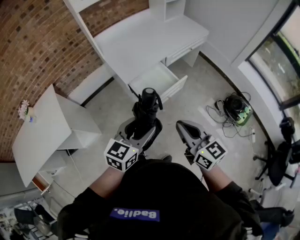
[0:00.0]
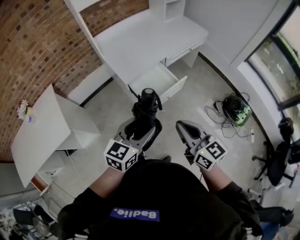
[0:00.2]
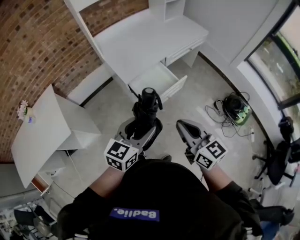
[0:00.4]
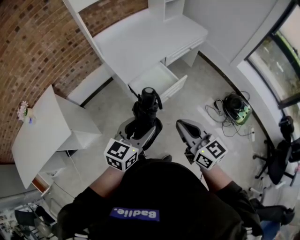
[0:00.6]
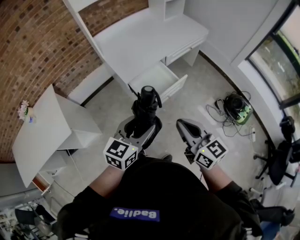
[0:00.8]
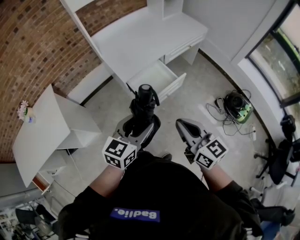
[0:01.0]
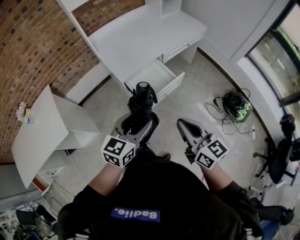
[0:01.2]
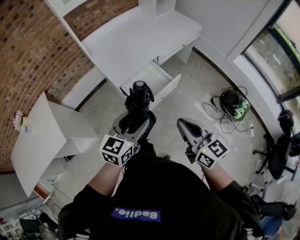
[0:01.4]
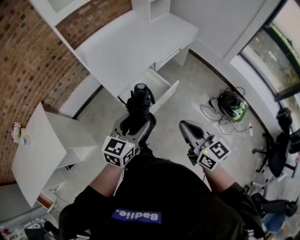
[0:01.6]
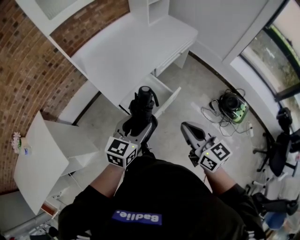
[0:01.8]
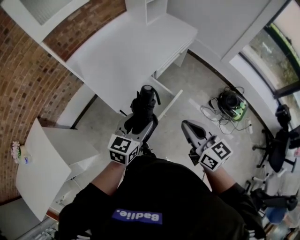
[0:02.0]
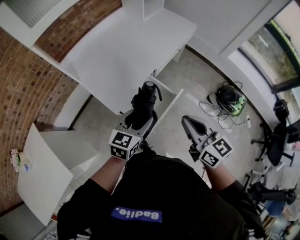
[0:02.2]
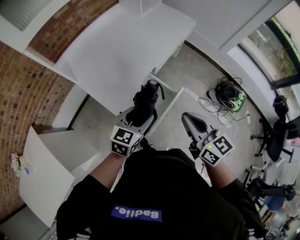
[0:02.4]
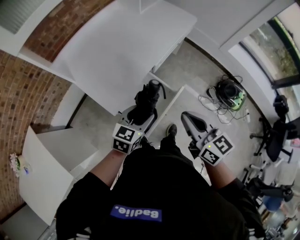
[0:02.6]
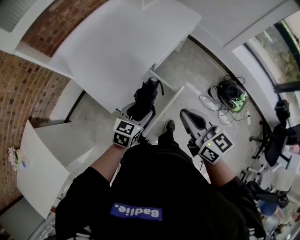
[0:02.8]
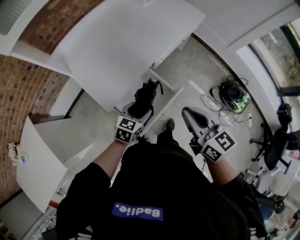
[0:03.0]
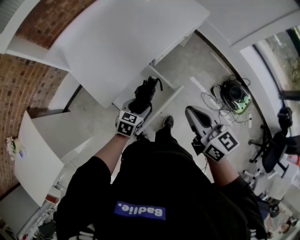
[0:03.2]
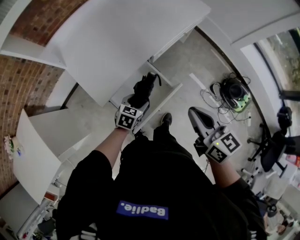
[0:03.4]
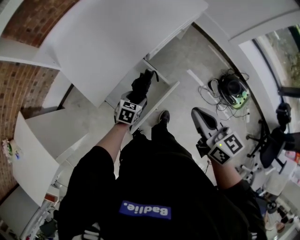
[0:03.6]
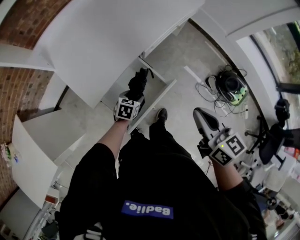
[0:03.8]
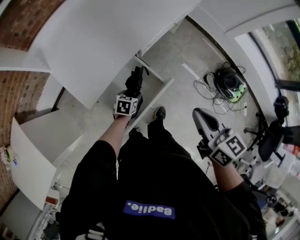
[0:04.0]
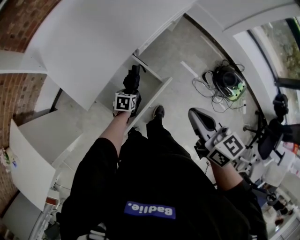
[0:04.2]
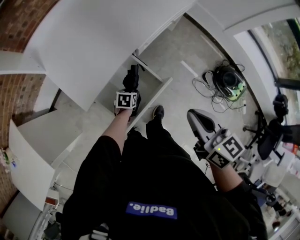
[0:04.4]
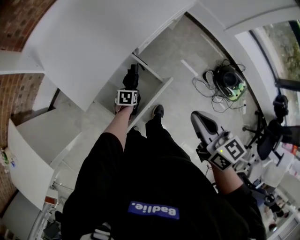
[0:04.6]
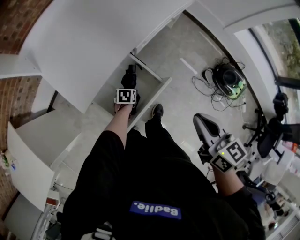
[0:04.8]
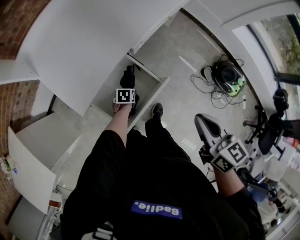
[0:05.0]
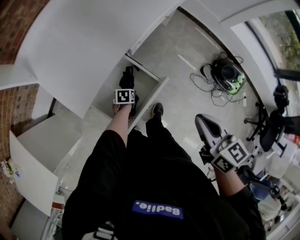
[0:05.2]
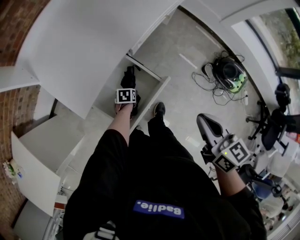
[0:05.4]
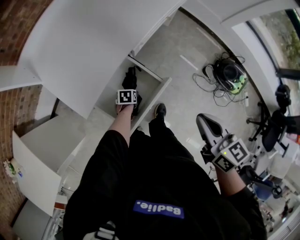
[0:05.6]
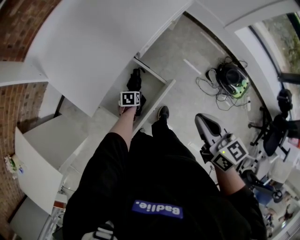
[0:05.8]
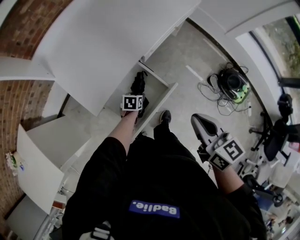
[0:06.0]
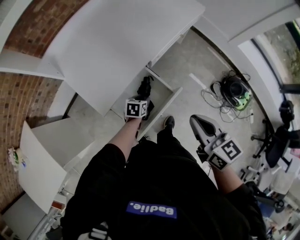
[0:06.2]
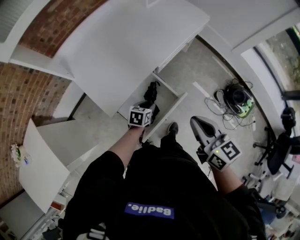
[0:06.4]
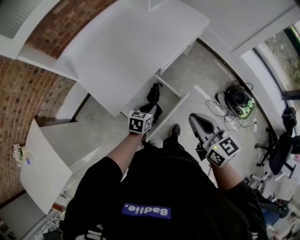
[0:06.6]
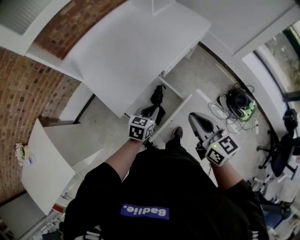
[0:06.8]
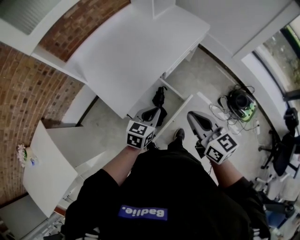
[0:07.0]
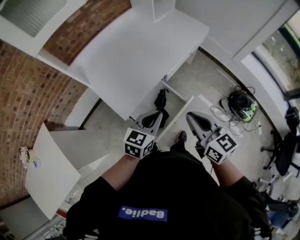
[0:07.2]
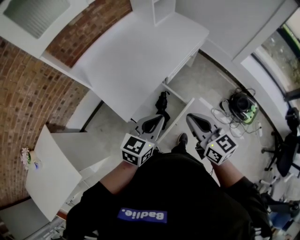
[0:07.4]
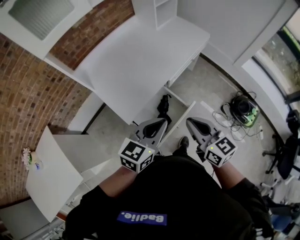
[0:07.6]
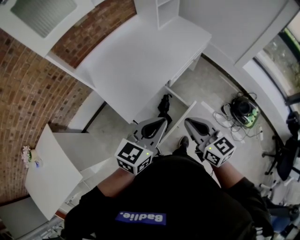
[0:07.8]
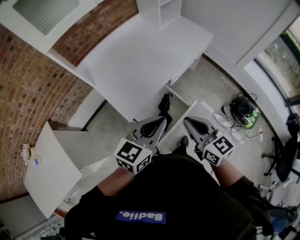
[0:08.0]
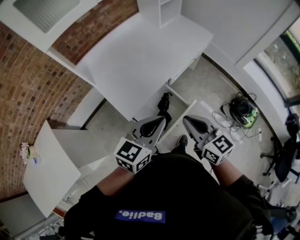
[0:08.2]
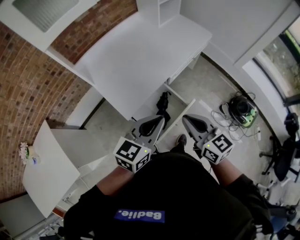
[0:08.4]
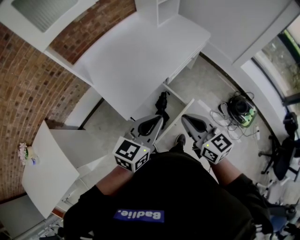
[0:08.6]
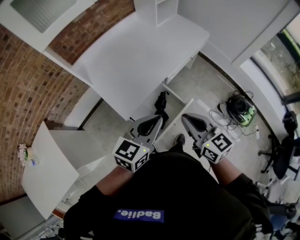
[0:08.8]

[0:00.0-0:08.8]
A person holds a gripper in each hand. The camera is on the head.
0:00.0 to 0:01.4: The left gripper travels forward by about 5 cm.
0:01.4 to 0:03.0: The left gripper goes approximately 35 cm forward and downward, and turns by about 20 degrees; the right gripper heads forward, covering some 25 cm.
0:03.0 to 0:04.4: The right gripper heads to the right and downward, covering roughly 10 cm; the left gripper shifts approximately 25 cm downward, and rotates some 30 degrees.
0:05.8 to 0:07.4: The right gripper heads to the left and upward, covering some 15 cm. Meanwhile the left gripper travels upward by approximately 40 cm, angles its fingers upward, by approximately 50 degrees, and closes its fingers.
0:07.4 to 0:08.8: The left gripper travels upward by approximately 5 cm.

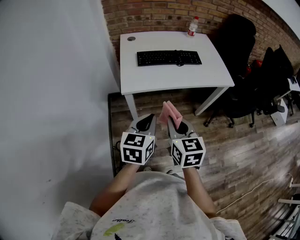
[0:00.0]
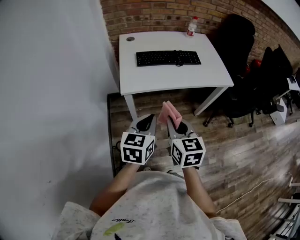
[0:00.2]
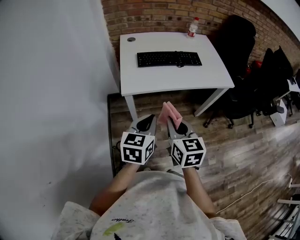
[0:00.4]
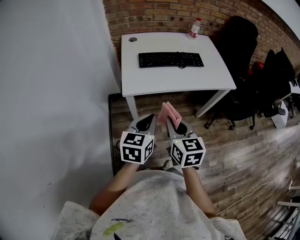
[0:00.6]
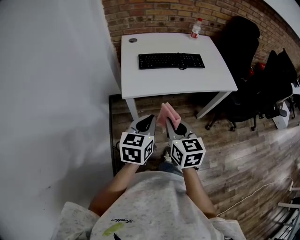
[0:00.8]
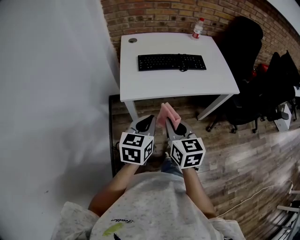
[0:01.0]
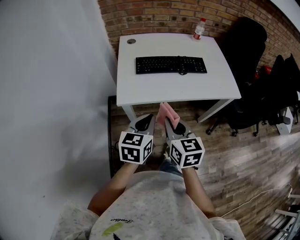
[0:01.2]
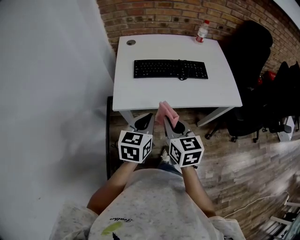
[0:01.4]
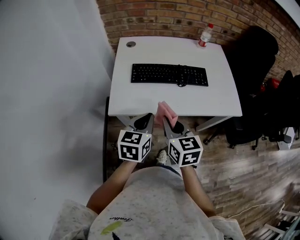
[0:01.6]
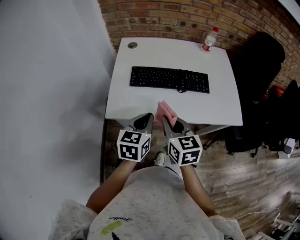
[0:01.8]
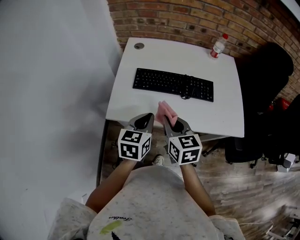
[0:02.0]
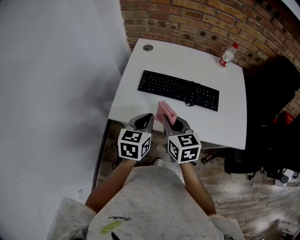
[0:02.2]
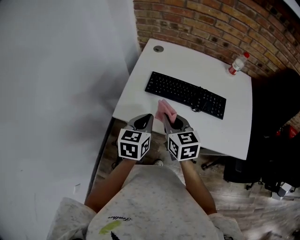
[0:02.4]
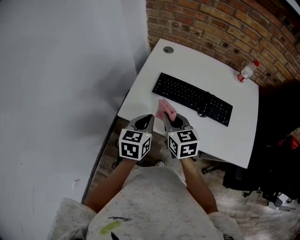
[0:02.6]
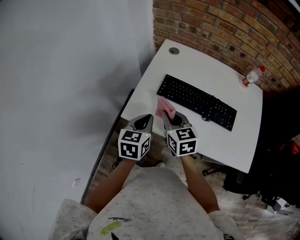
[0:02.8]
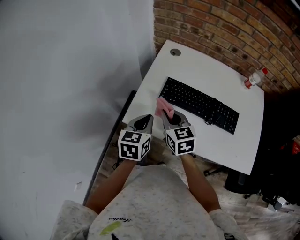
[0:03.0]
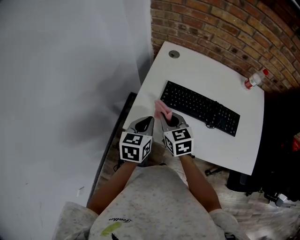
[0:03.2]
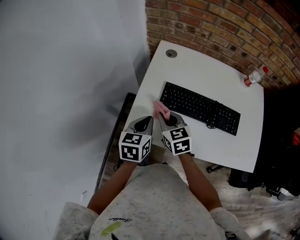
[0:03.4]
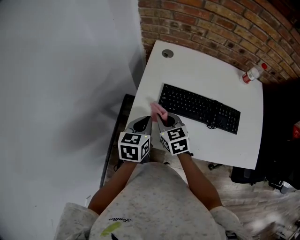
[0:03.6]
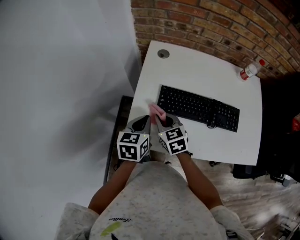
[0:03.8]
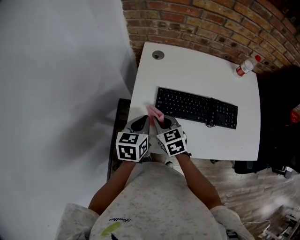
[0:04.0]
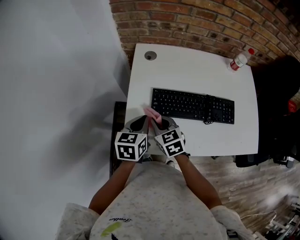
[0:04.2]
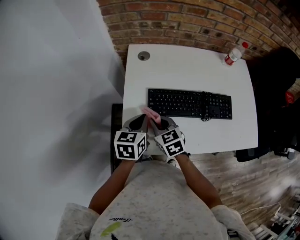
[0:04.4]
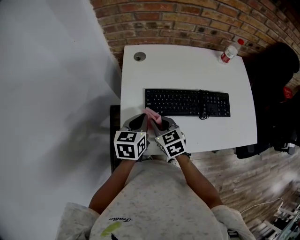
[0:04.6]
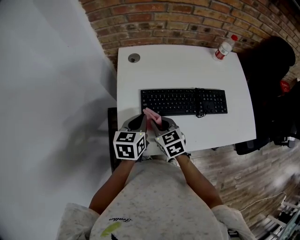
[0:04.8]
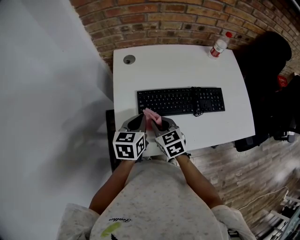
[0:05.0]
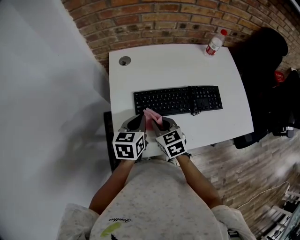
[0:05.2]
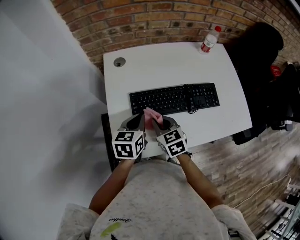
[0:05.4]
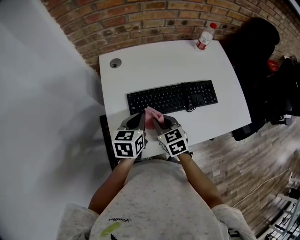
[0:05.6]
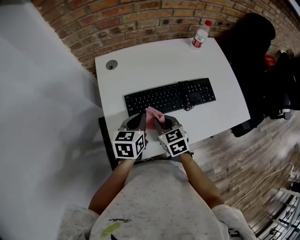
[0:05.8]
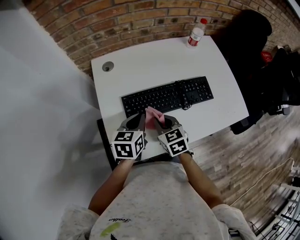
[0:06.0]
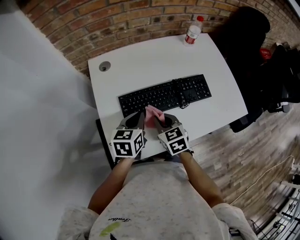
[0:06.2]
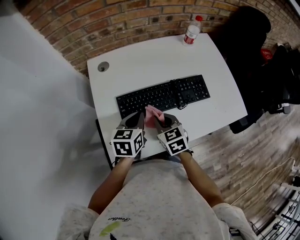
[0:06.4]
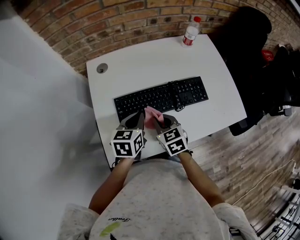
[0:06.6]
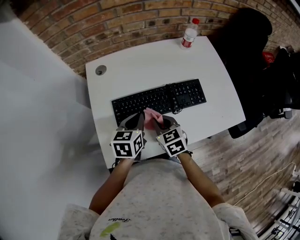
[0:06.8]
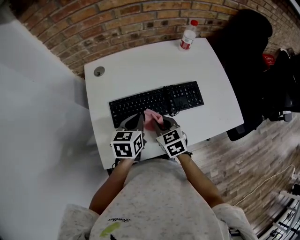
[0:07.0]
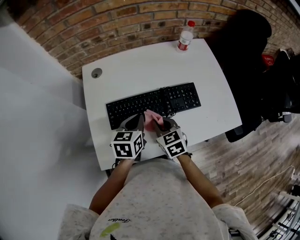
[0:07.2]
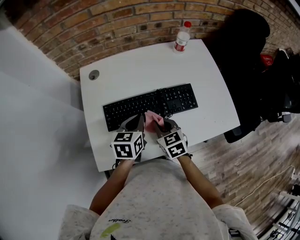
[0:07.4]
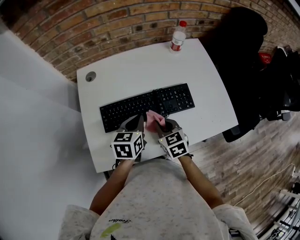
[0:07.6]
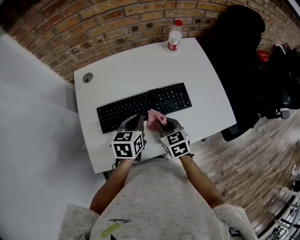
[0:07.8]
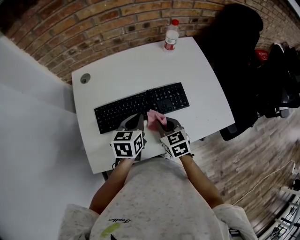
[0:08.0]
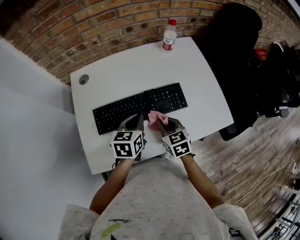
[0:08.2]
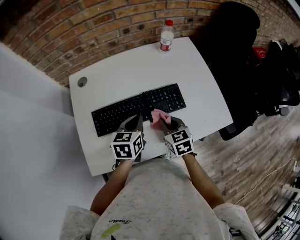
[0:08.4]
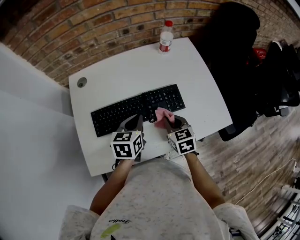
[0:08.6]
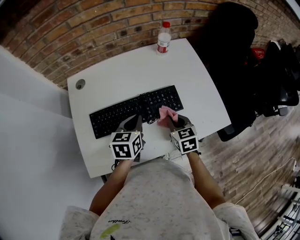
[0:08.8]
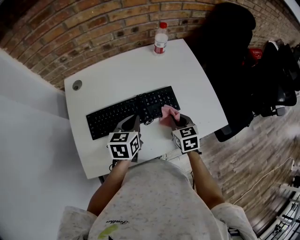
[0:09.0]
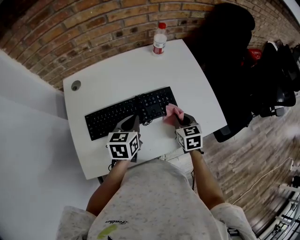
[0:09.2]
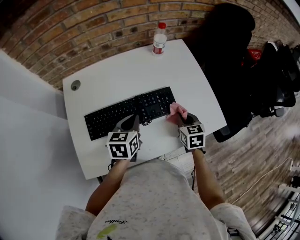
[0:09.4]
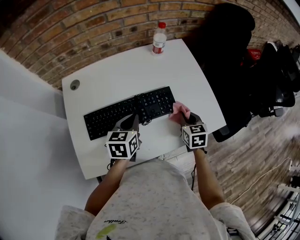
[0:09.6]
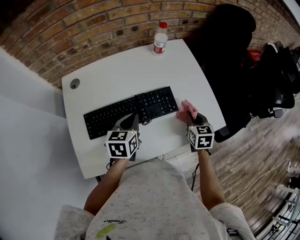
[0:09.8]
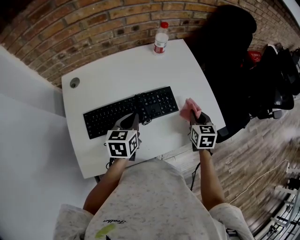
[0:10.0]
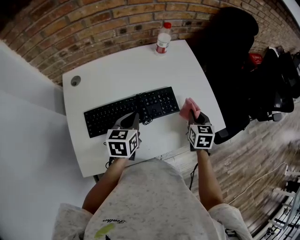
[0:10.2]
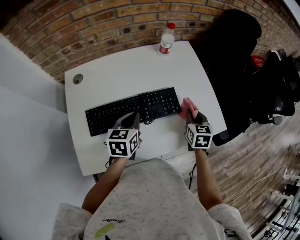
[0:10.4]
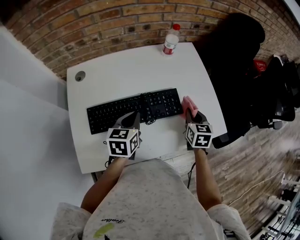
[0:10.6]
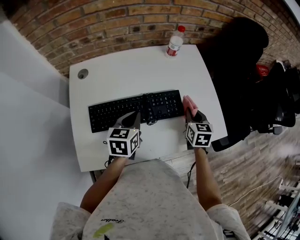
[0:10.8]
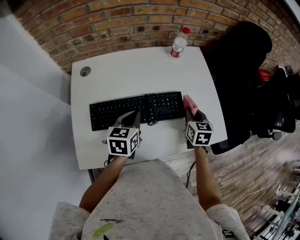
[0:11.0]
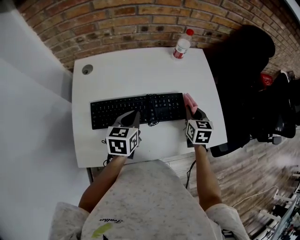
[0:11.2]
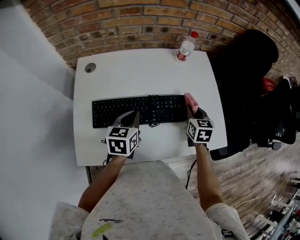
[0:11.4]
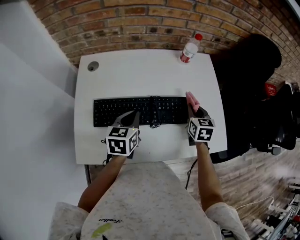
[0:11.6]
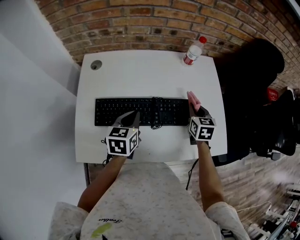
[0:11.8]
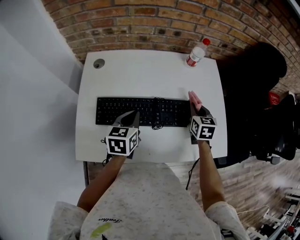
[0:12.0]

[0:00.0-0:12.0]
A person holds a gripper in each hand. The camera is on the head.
0:00.0 to 0:01.6: The two grippers go about 20 cm forward.
0:01.6 to 0:03.0: Both grippers travel together forward and to the left, about 20 cm. The left gripper changes its angle by some 20 degrees. Meanwhile the right gripper rotates roughly 30 degrees.
0:03.0 to 0:04.4: The left gripper goes roughly 10 cm forward, while the right gripper moves forward and downward, roughly 10 cm.
0:04.4 to 0:06.0: Both grippers move to the right, approximately 10 cm.
0:06.0 to 0:07.6: The grippers both shift to the right by approximately 10 cm.
0:07.6 to 0:09.0: The right gripper moves to the right, about 15 cm. Meanwhile the left gripper travels to the right by about 5 cm.
0:09.0 to 0:10.4: The right gripper shifts some 10 cm to the right.
0:10.4 to 0:12.0: The right gripper goes some 10 cm forward and to the left, while the left gripper heads to the left, covering roughly 5 cm.

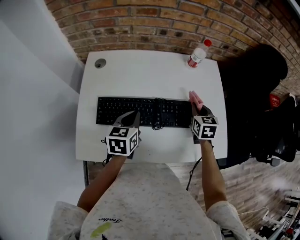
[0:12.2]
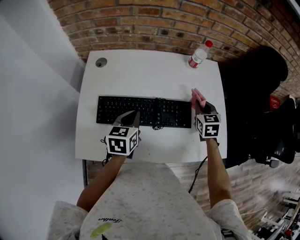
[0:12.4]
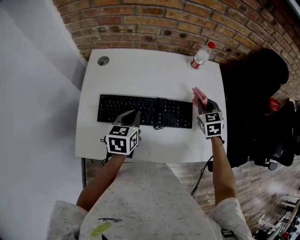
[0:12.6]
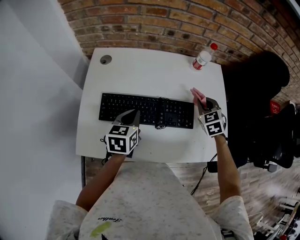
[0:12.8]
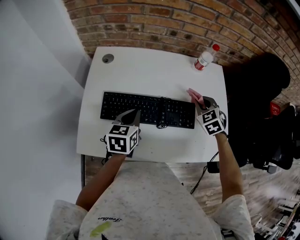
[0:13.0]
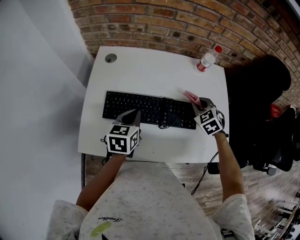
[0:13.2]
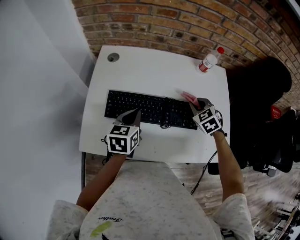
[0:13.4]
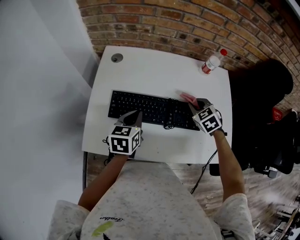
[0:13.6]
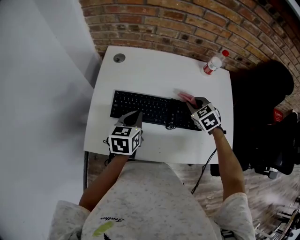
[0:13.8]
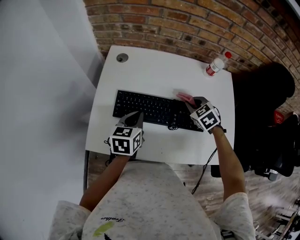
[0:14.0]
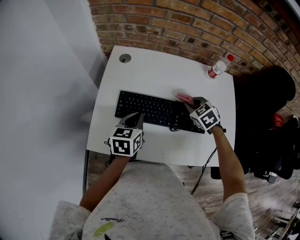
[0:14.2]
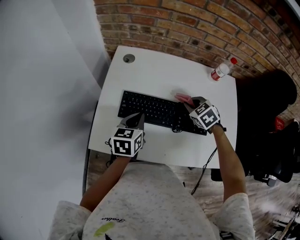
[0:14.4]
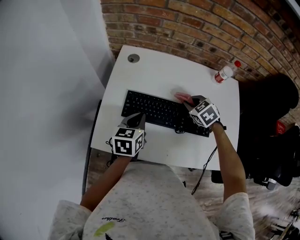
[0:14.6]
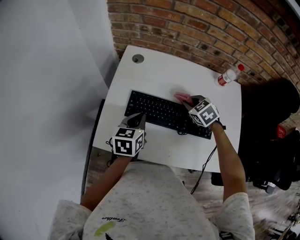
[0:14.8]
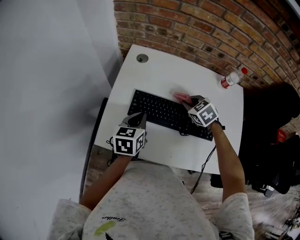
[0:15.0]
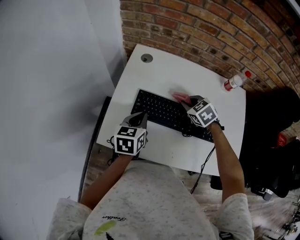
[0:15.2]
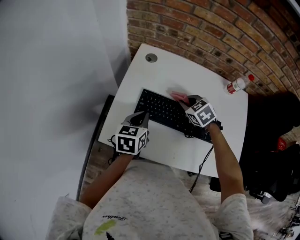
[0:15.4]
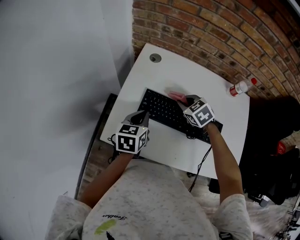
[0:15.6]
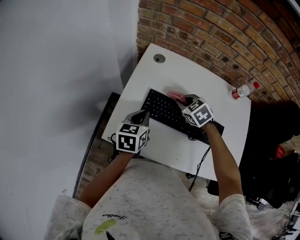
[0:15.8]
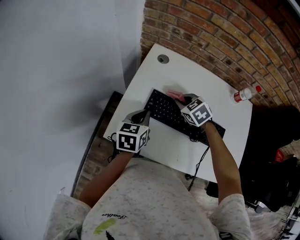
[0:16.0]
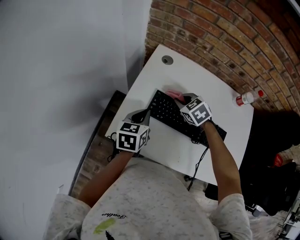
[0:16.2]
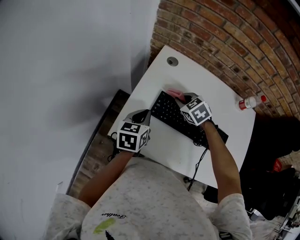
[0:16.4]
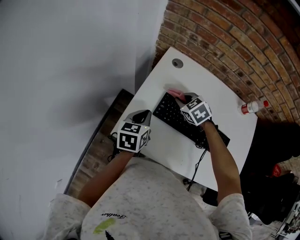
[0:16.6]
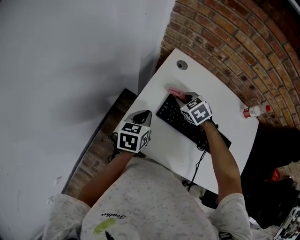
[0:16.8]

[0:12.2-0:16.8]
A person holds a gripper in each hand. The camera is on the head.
0:12.2 to 0:13.8: The right gripper is displaced to the left by some 10 cm, and turns by about 40 degrees. The left gripper travels to the left by roughly 5 cm.
0:13.8 to 0:15.2: The right gripper shifts about 15 cm to the left. Meanwhile the left gripper heads to the left, covering roughly 5 cm.
0:15.2 to 0:16.8: The left gripper goes some 10 cm to the left. Meanwhile the right gripper moves to the left, some 15 cm.
